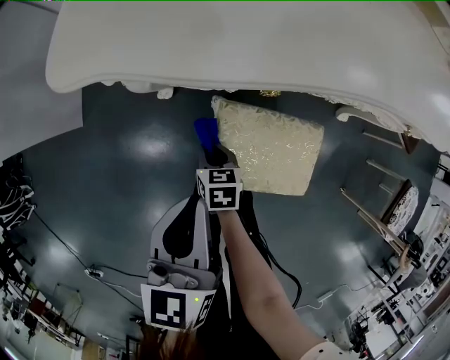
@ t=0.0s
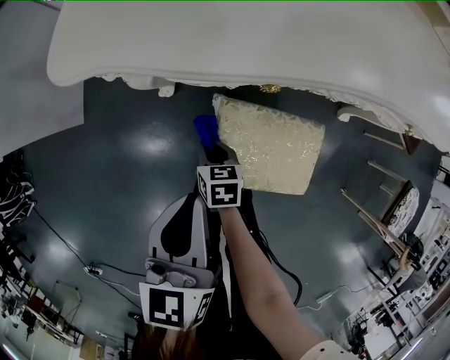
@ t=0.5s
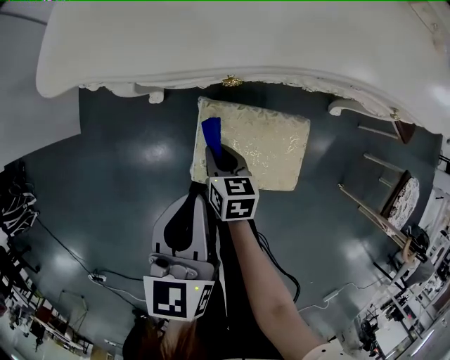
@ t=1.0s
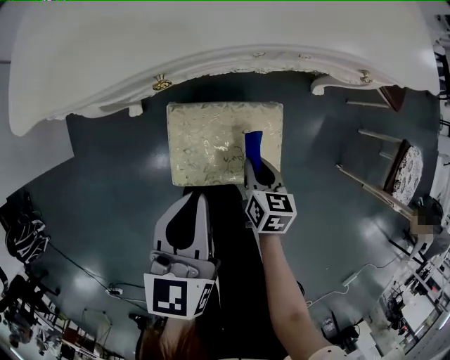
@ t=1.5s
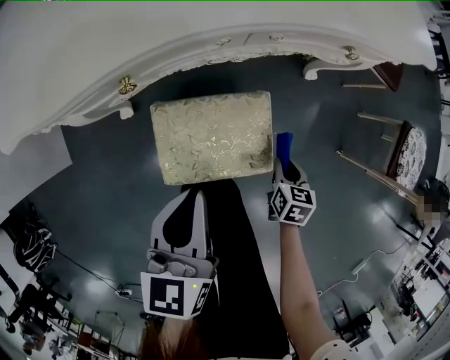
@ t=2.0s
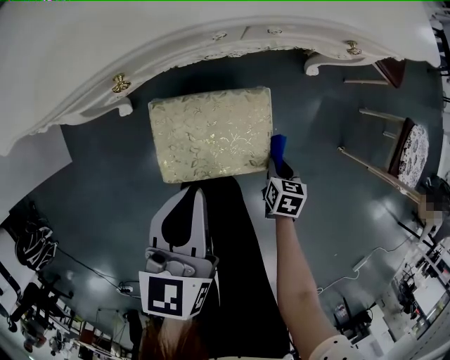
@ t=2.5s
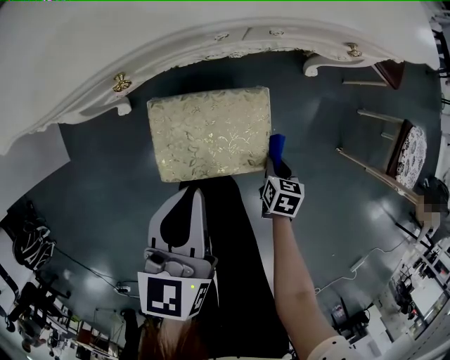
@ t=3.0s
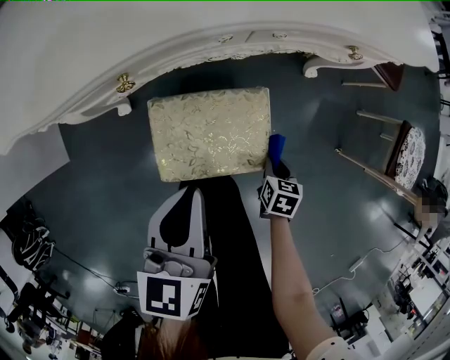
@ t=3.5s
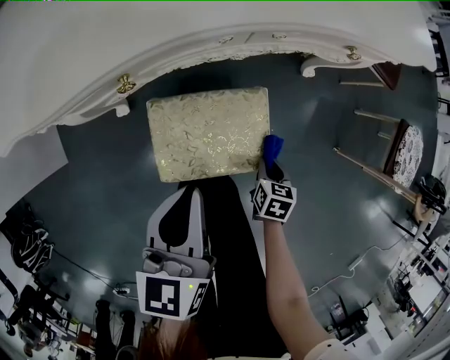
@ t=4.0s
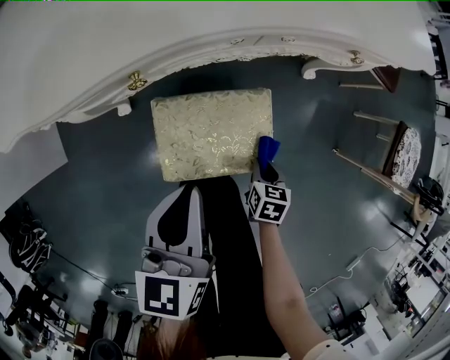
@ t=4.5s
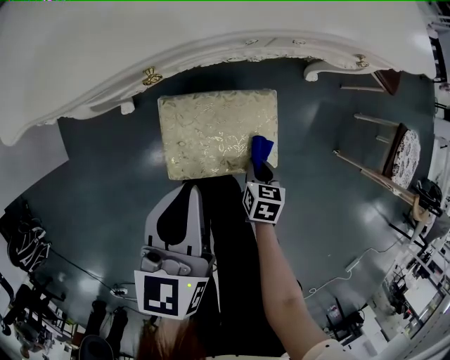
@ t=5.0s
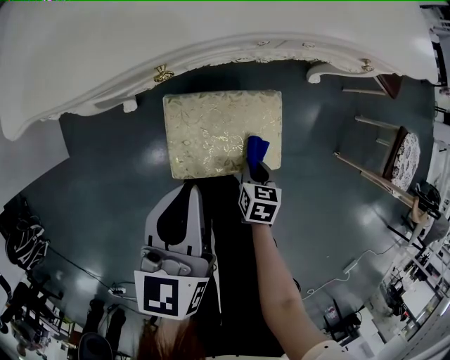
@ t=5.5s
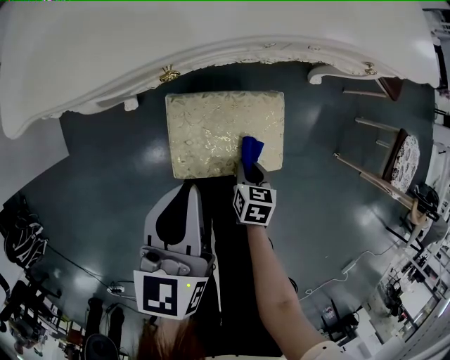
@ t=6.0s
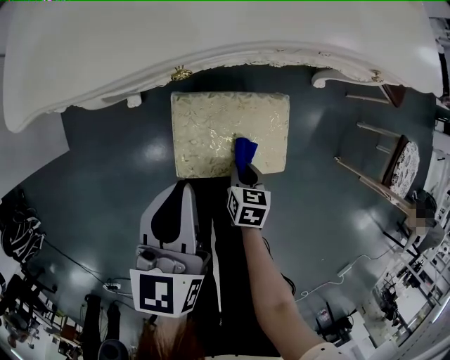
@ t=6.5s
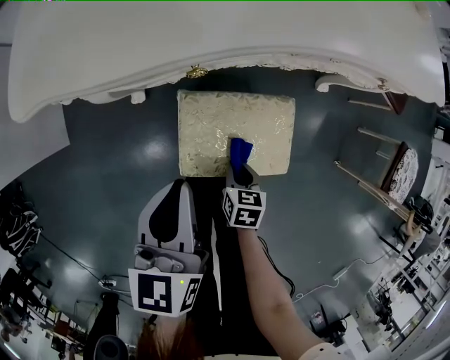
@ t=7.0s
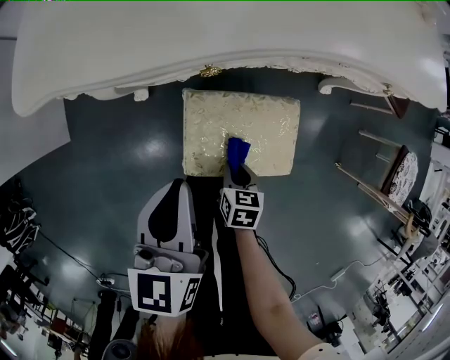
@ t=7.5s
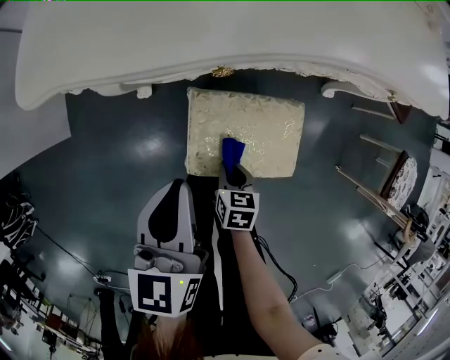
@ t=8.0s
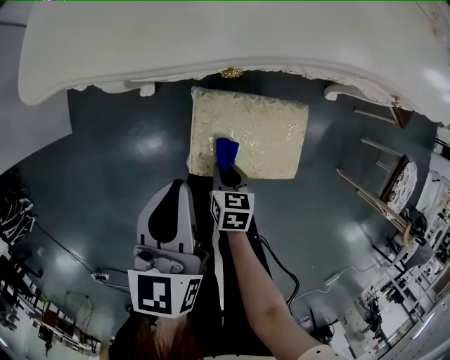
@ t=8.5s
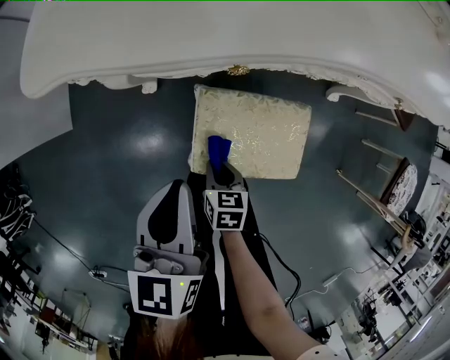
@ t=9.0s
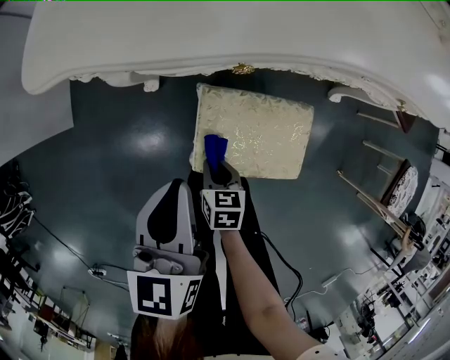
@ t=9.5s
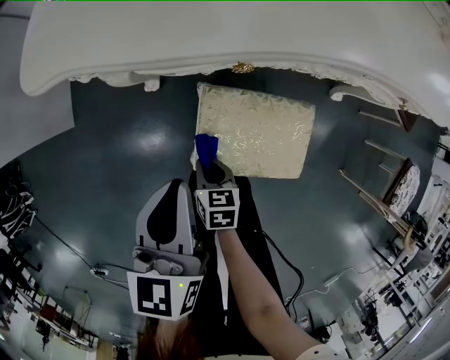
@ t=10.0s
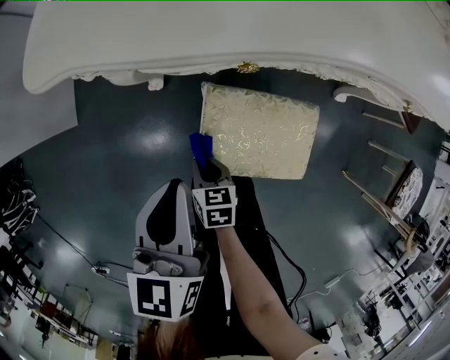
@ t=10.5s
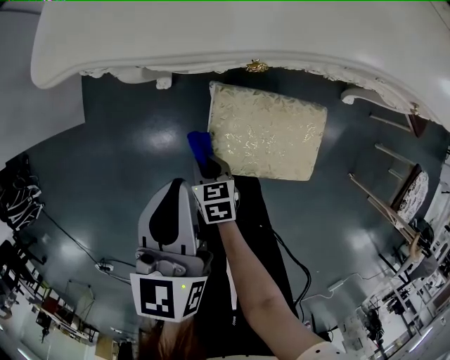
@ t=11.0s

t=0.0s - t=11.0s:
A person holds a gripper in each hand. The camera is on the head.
t=0.0s - t=2.0s: The left gripper moves some 15 cm. The right gripper shifts by approximately 40 cm, and swivels roughly 30 degrees.
t=2.0s - t=3.5s: The grippers stay close to where they were, moving slightly.
t=3.5s - t=5.5s: The right gripper moves to the left, about 10 cm. Meanwhile the left gripper travels to the left by approximately 5 cm.
t=5.5s - t=7.5s: The left gripper moves to the left, some 5 cm. Meanwhile the right gripper goes approximately 10 cm to the left.
t=7.5s - t=9.0s: The right gripper is displaced to the left by approximately 10 cm.
t=9.0s - t=11.0s: The right gripper shifts roughly 10 cm to the left.

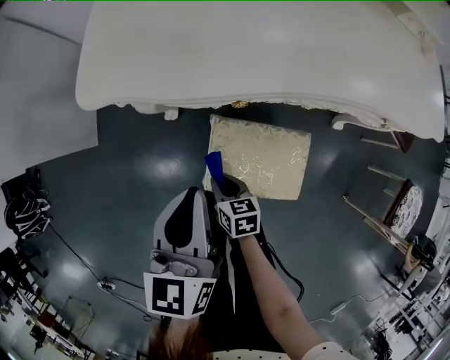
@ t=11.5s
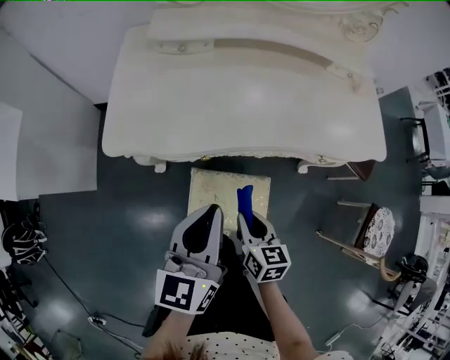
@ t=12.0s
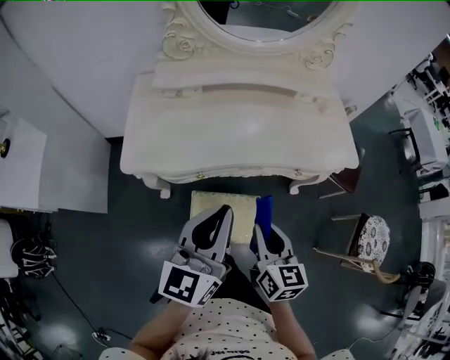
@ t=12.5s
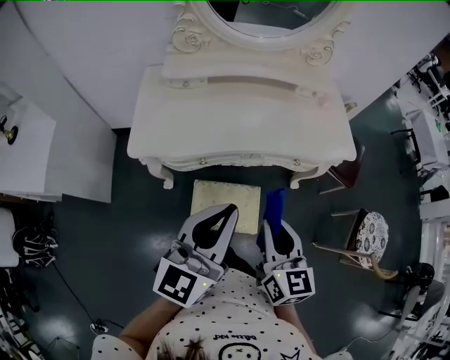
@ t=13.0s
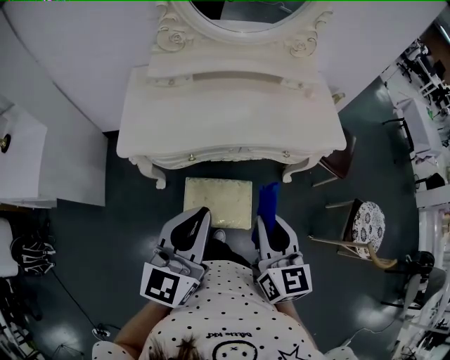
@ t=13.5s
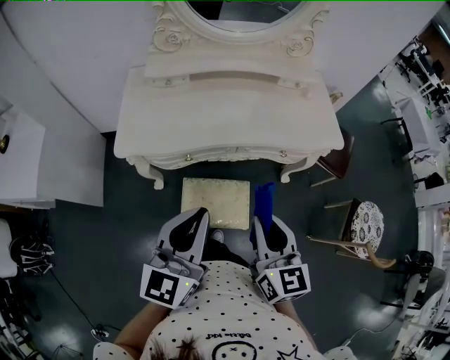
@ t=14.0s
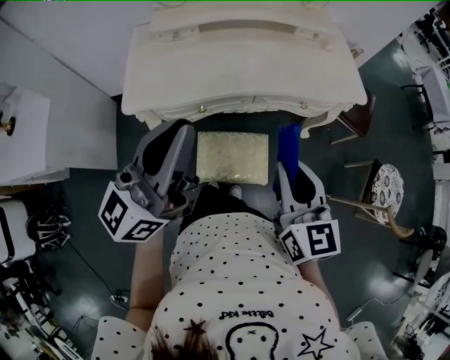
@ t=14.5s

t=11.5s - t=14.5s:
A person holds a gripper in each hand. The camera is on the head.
t=11.5s - t=13.0s: The left gripper travels upward by approximately 30 cm, and rotates roughly 40 degrees, while the right gripper moves upward, roughly 50 cm, and tilts its fingers about 30 degrees upward.
t=13.0s - t=14.5s: The left gripper travels to the left and upward by some 5 cm.

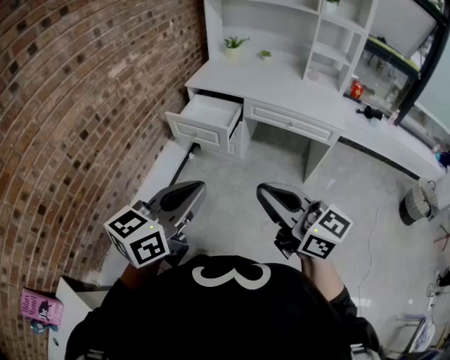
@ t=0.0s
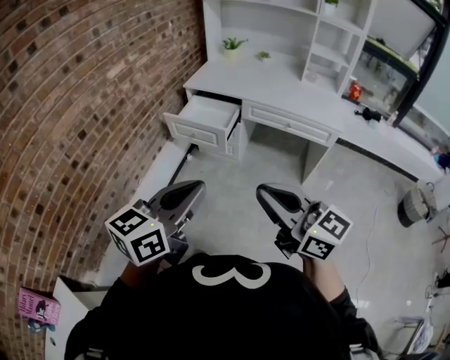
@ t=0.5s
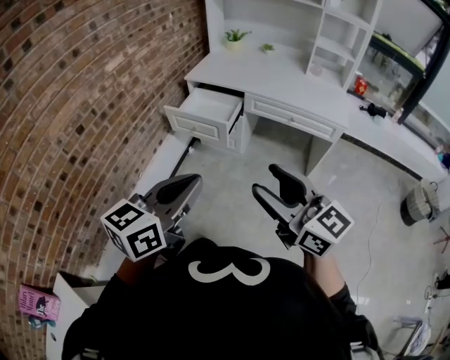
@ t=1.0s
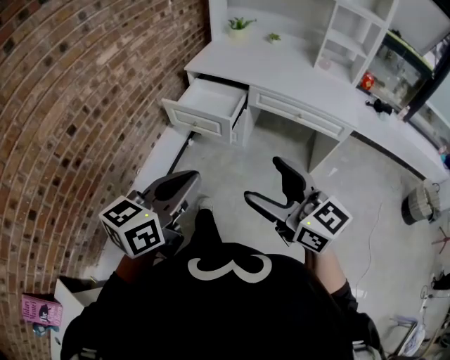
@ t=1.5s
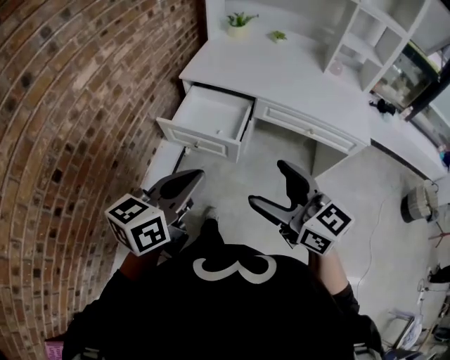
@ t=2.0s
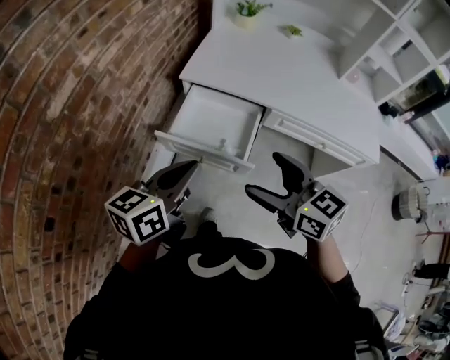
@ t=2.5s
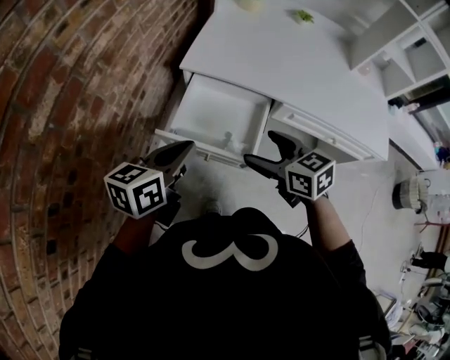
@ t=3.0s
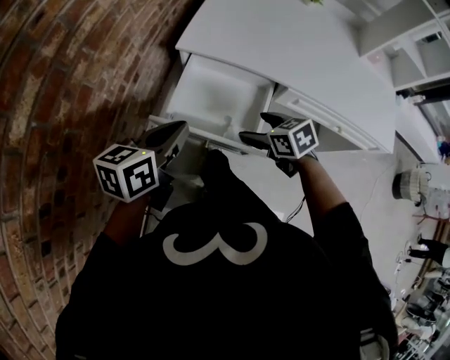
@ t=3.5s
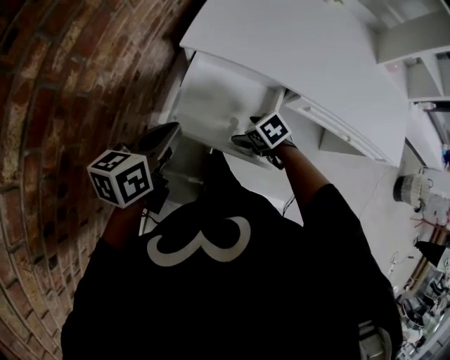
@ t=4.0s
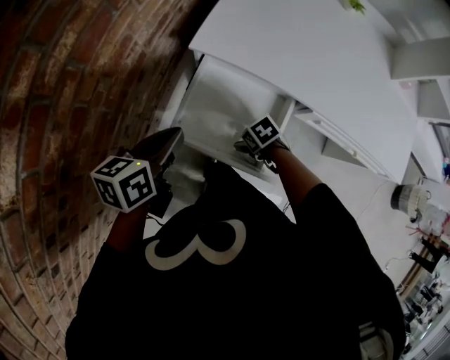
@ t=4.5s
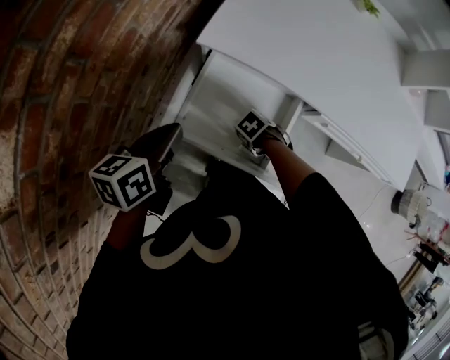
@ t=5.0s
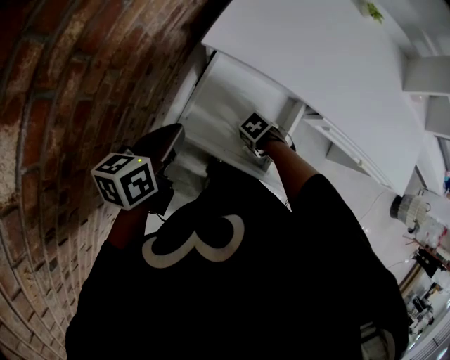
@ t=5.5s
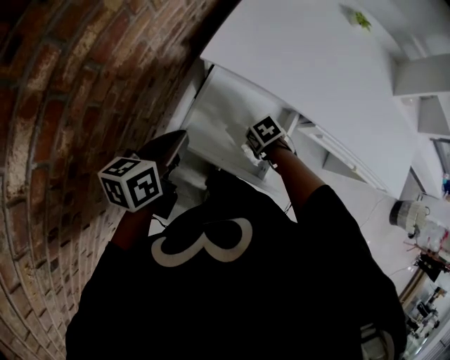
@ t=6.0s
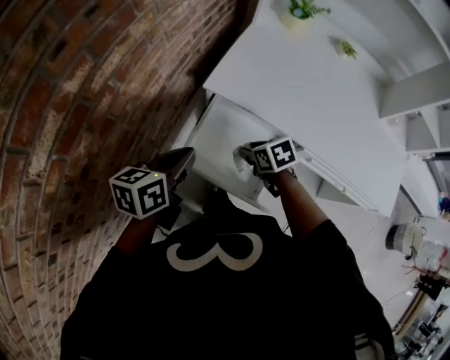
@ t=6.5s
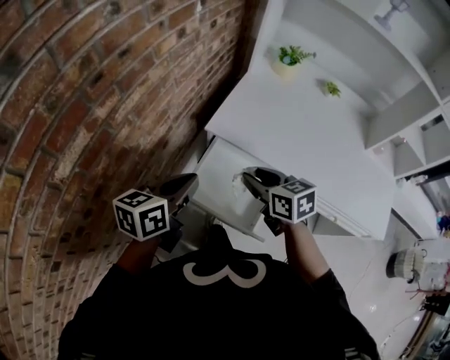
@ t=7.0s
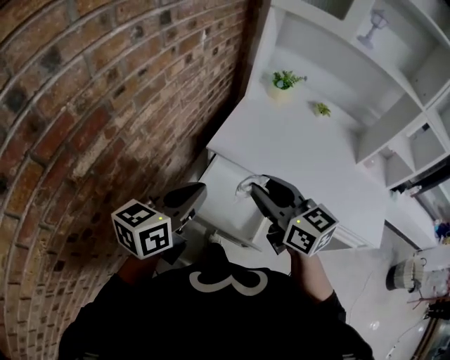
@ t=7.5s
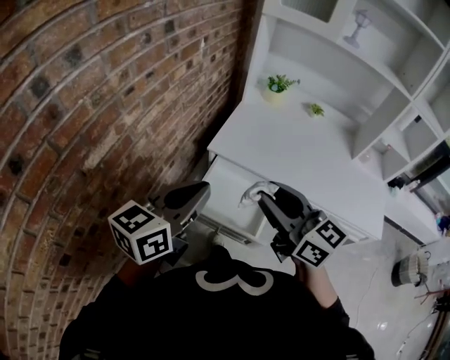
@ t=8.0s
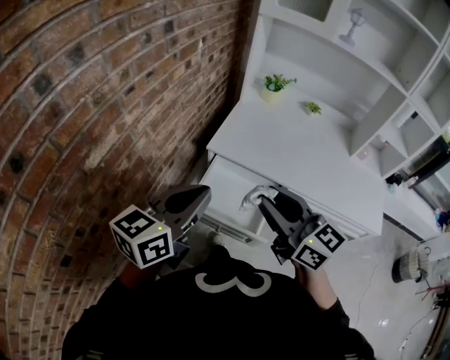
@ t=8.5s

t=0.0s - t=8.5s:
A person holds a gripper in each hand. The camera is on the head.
t=0.0s - t=2.0s: Both grippers travel together forward, some 25 cm. The right gripper opens up.
t=2.0s - t=4.0s: The right gripper moves downward and forward, approximately 50 cm, and angles its fingers downward, by some 50 degrees, while the left gripper is displaced forward and downward by about 40 cm, and swivels approximately 20 degrees.
t=4.0s - t=6.5s: The right gripper moves some 10 cm, and closes up.
t=6.5s - t=8.5s: The left gripper goes roughly 20 cm upward and backward, and rotates approximately 30 degrees. Meanwhile the right gripper is displaced upward and backward by roughly 35 cm, and tips its fingers upward by about 50 degrees.

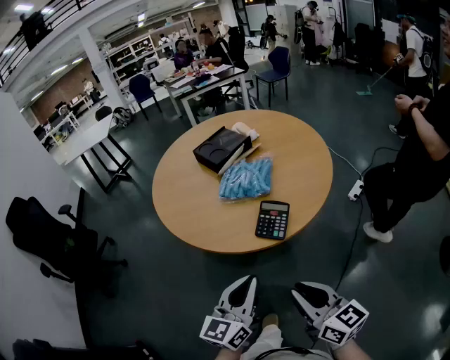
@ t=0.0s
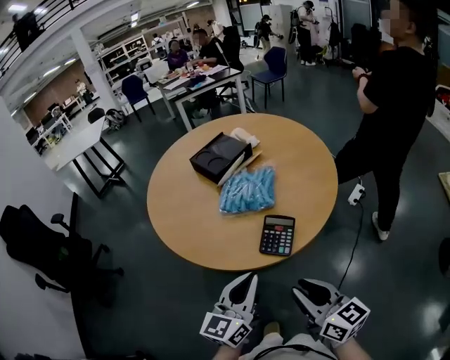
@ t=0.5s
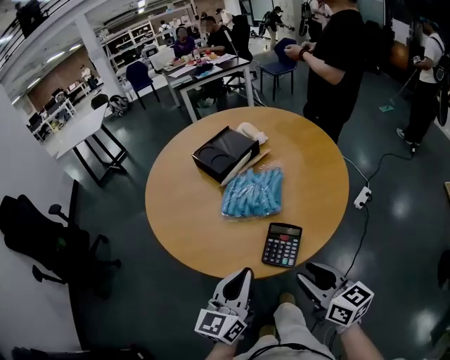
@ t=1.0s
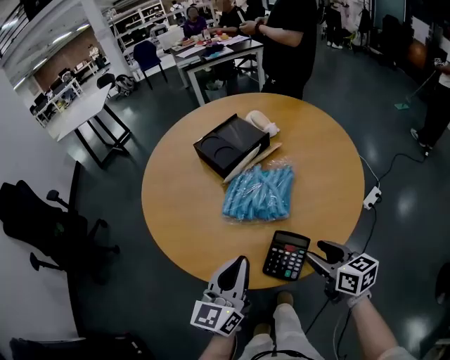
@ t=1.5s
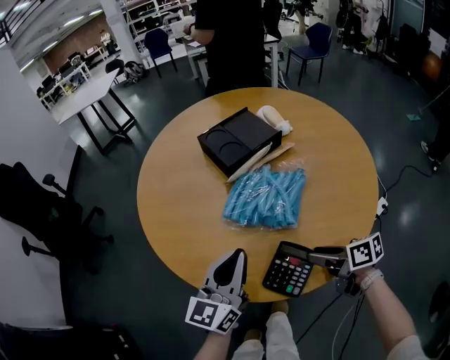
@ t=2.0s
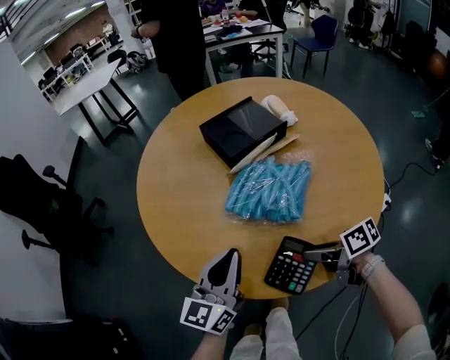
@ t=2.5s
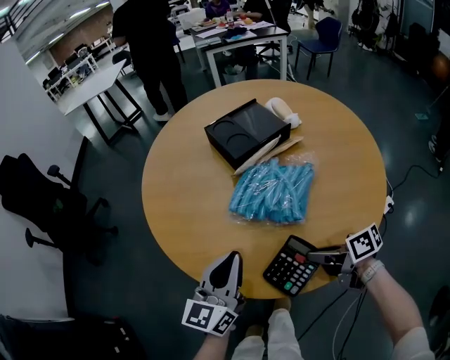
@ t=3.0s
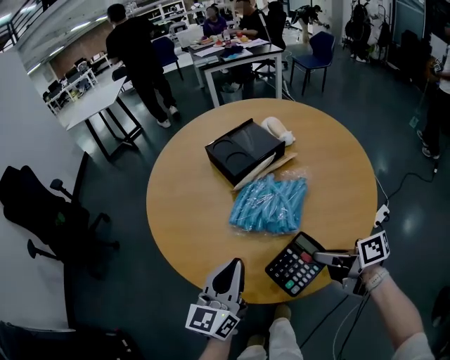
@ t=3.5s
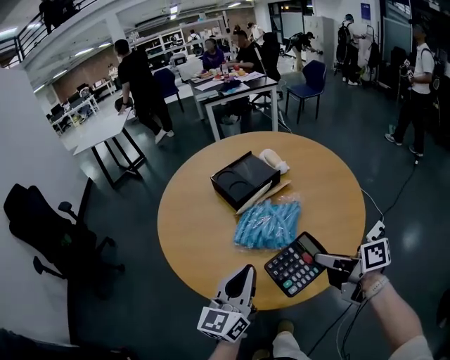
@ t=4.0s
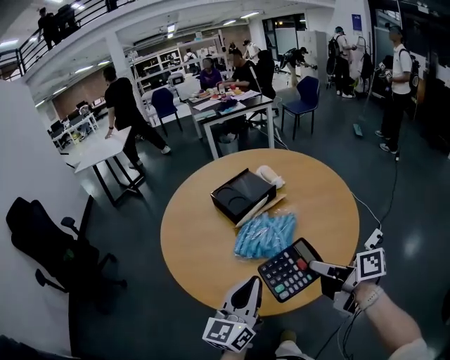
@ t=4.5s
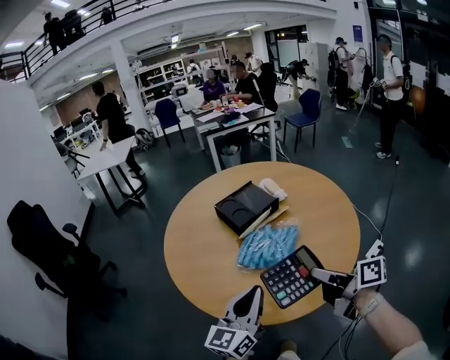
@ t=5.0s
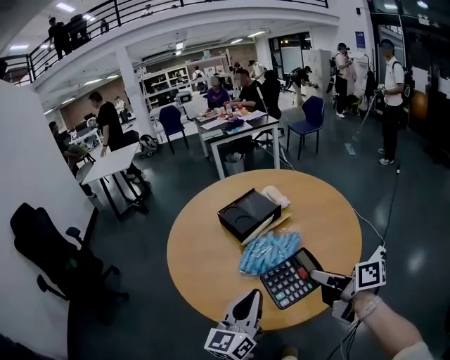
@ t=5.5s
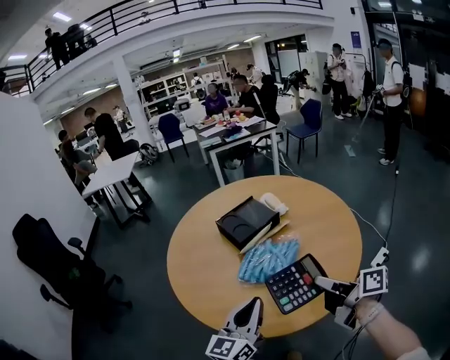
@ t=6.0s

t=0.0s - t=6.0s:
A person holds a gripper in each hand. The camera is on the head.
t=0.0s - t=2.0s: The left gripper moves some 30 cm. Meanwhile the right gripper ends up approximately 40 cm from where it was, changes its angle by about 50 degrees, and opens its fingers.
t=2.0s - t=4.0s: The left gripper heads upward, covering roughly 10 cm, while the right gripper shifts about 20 cm upward, and closes.
t=4.0s - t=6.0s: The right gripper ends up some 5 cm from where it was.
